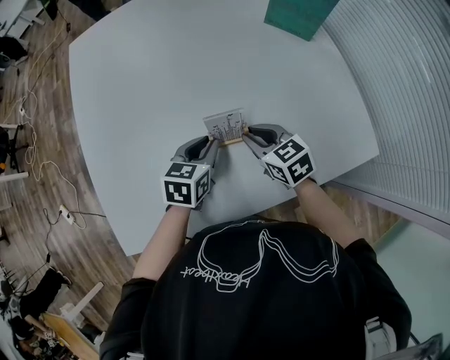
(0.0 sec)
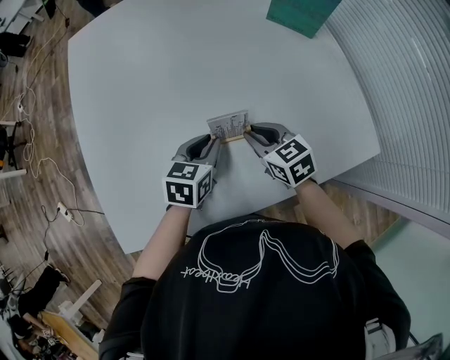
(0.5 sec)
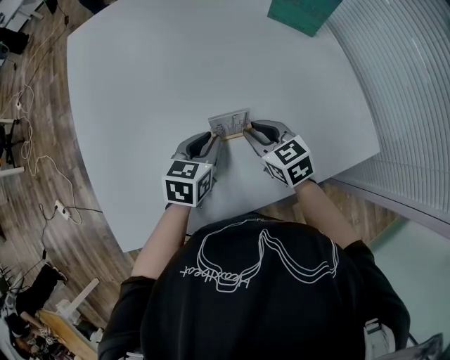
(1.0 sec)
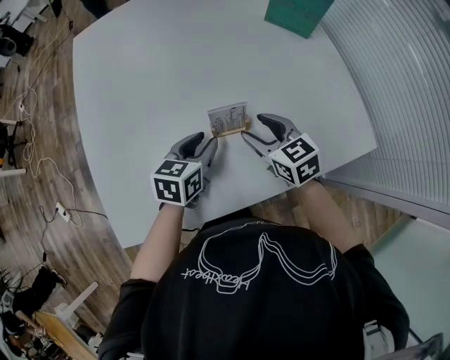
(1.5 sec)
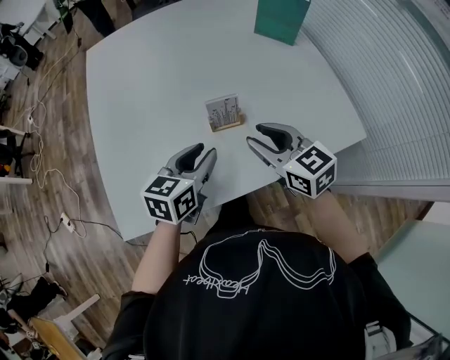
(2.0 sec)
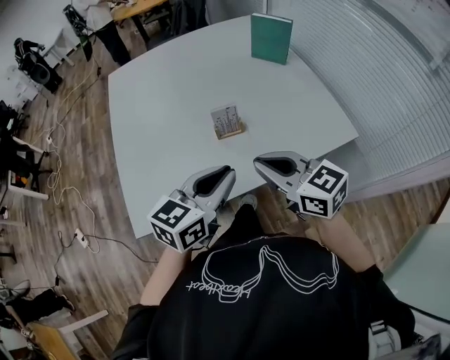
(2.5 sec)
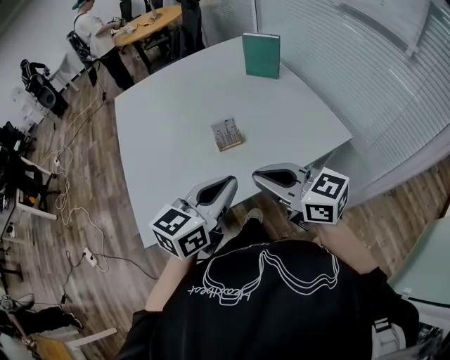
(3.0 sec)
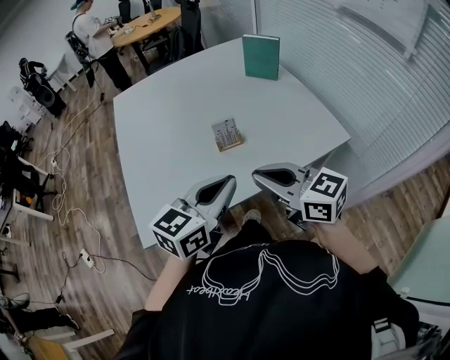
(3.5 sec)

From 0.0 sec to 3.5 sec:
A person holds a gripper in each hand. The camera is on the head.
From 0.0 sec to 2.0 sec: The grippers both shift upward and backward by roughly 15 cm. The right gripper opens and closes again.
From 2.0 sec to 3.5 sec: The two grippers go some 20 cm backward and upward. The left gripper swivels about 20 degrees, and closes its fingers, while the right gripper closes its fingers.

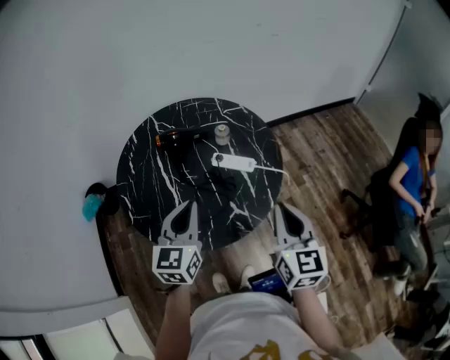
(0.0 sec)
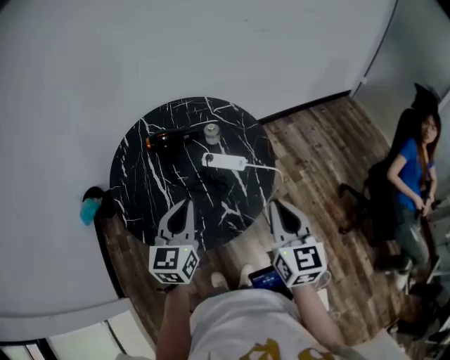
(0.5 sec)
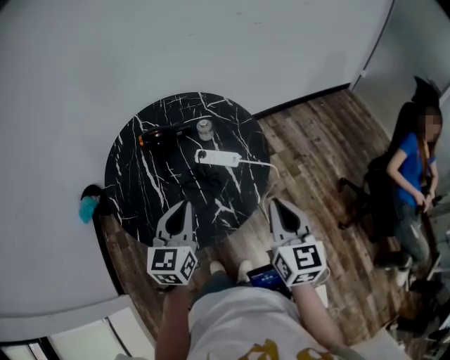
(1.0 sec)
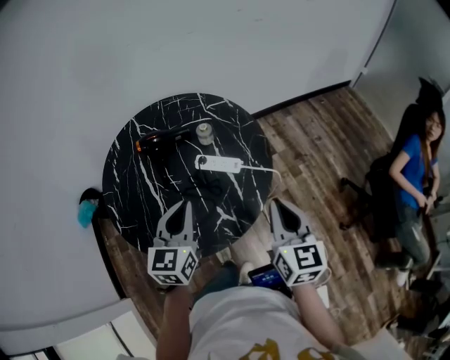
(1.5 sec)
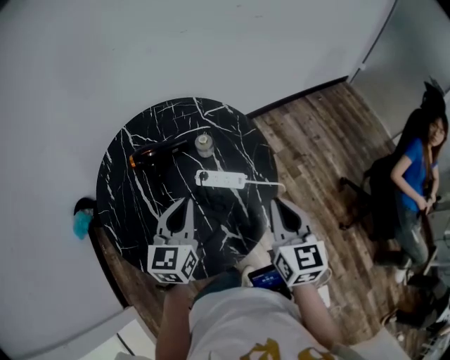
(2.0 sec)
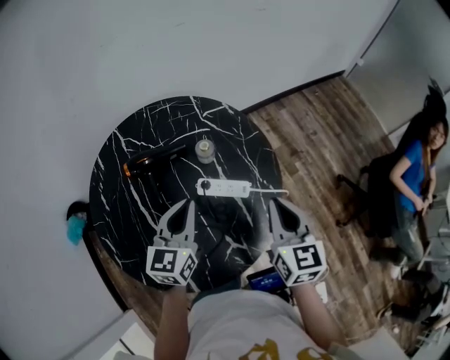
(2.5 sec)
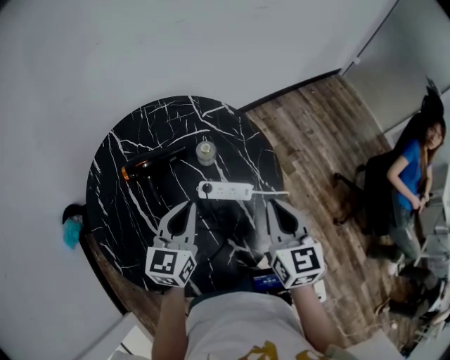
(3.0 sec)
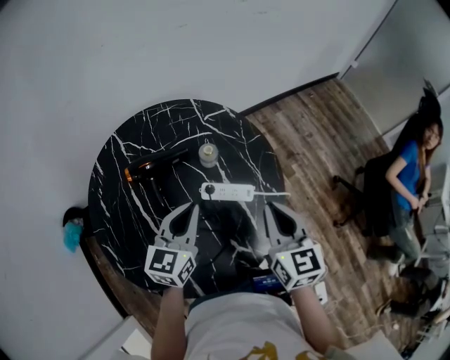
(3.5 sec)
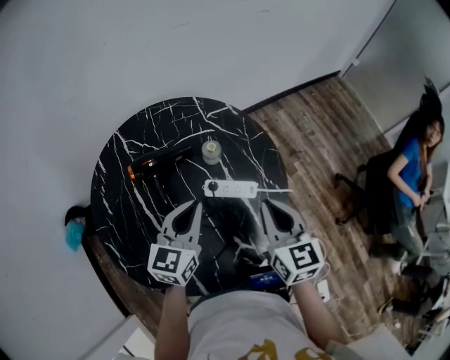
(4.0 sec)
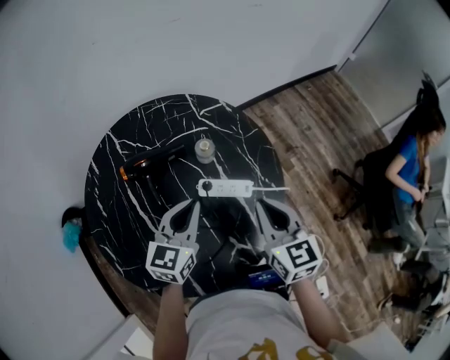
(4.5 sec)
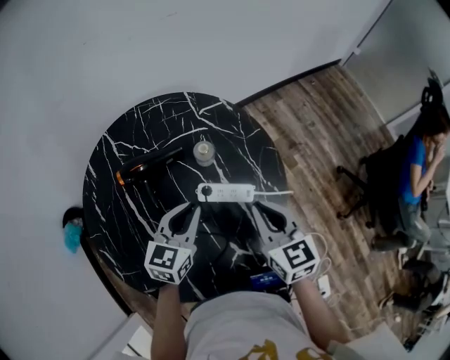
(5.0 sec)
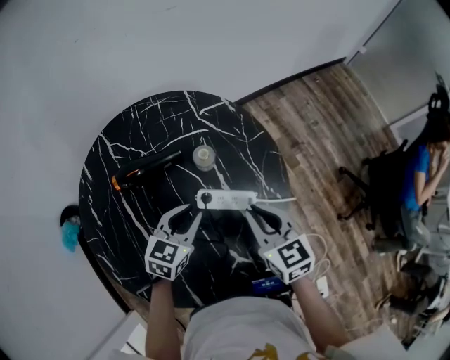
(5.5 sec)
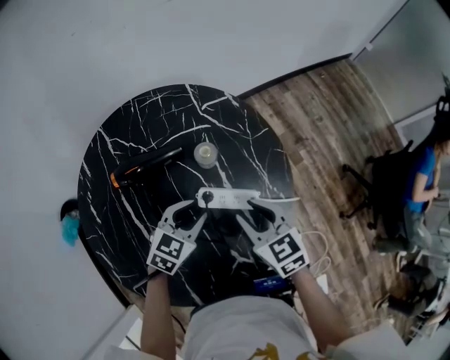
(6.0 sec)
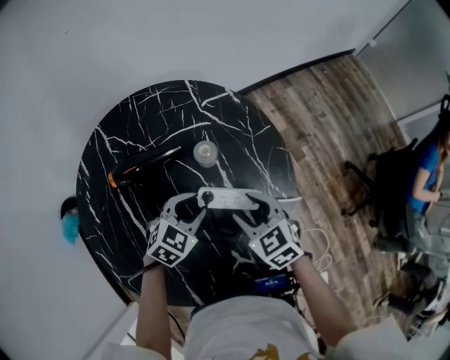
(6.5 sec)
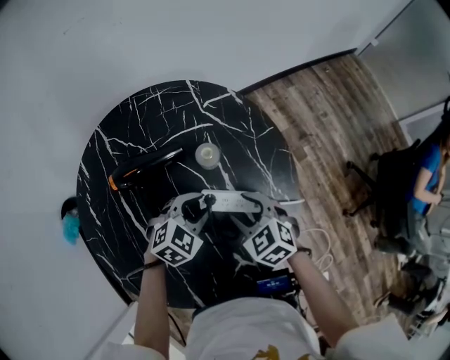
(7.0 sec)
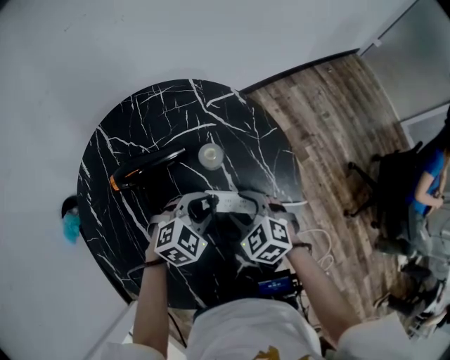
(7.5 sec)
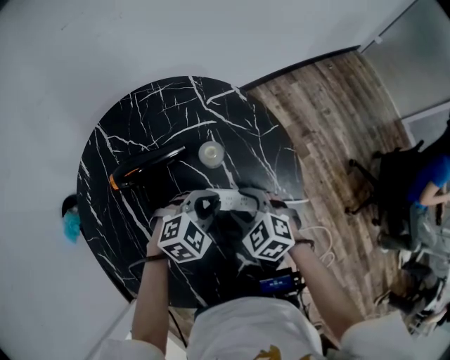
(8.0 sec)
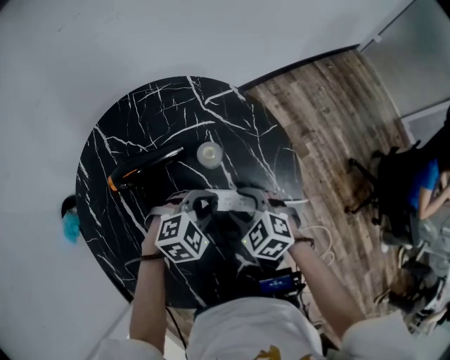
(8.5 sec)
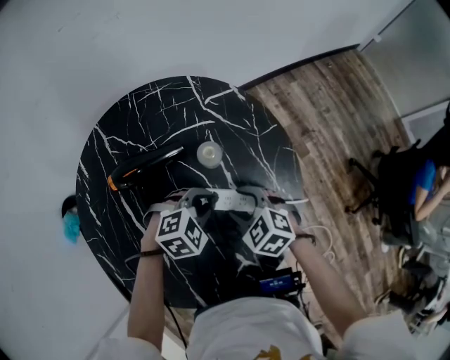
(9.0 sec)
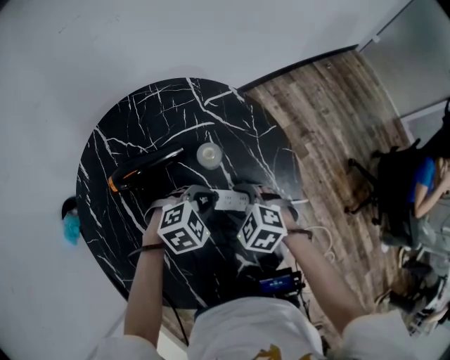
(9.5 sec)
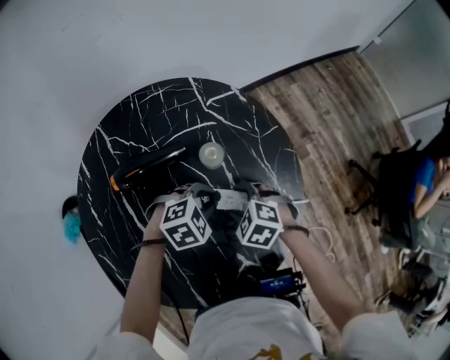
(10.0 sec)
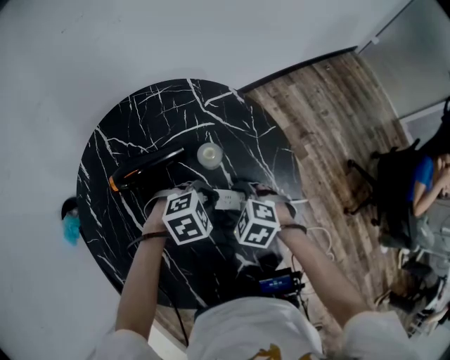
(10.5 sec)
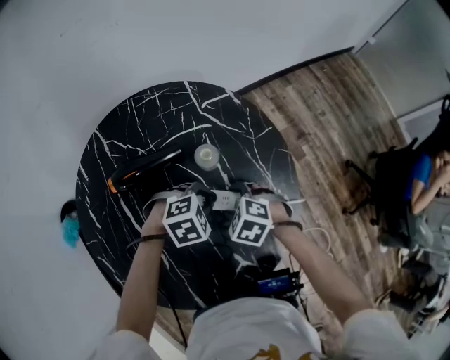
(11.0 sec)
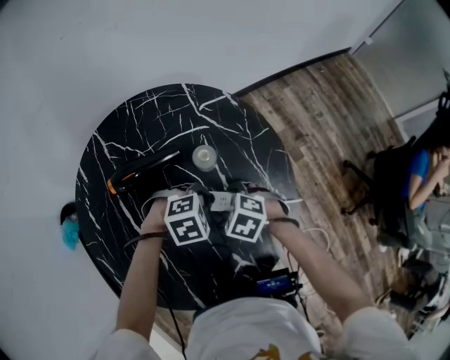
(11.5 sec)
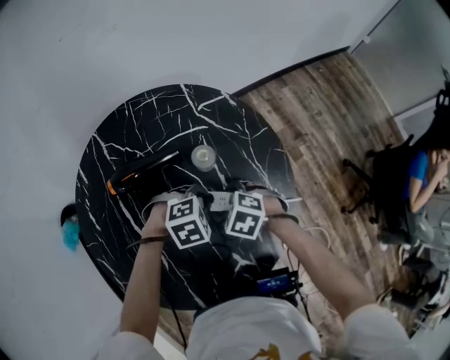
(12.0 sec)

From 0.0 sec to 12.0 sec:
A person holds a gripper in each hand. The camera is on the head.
From 0.0 sec to 2.0 sec: The two grippers go roughly 15 cm forward.
From 2.0 sec to 4.0 sec: The right gripper moves to the left, roughly 10 cm. Meanwhile the left gripper shifts by roughly 5 cm.
From 4.0 sec to 6.0 sec: The grippers both shift downward by approximately 15 cm. The right gripper swivels roughly 30 degrees, and opens up. Meanwhile the left gripper swivels approximately 30 degrees, and opens its fingers.
From 6.0 sec to 8.0 sec: The right gripper goes approximately 10 cm downward, and rotates approximately 30 degrees. The left gripper rotates approximately 30 degrees.
From 8.0 sec to 10.0 sec: There are only small adjustments of the grippers.
From 10.0 sec to 12.0 sec: There are only small adjustments of the grippers.

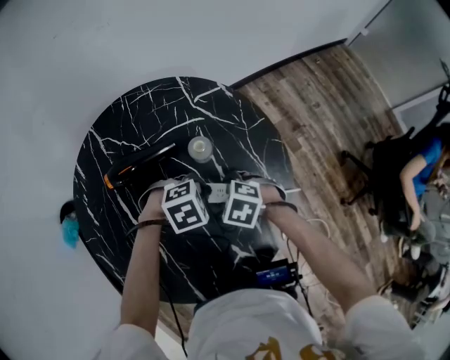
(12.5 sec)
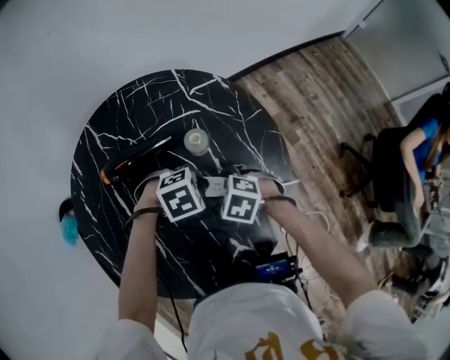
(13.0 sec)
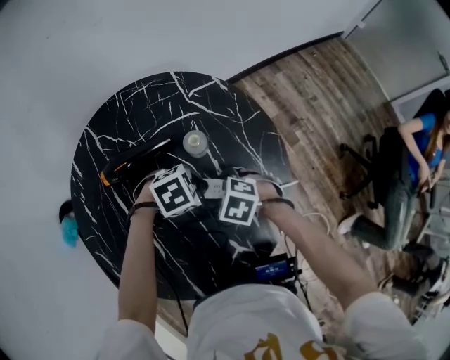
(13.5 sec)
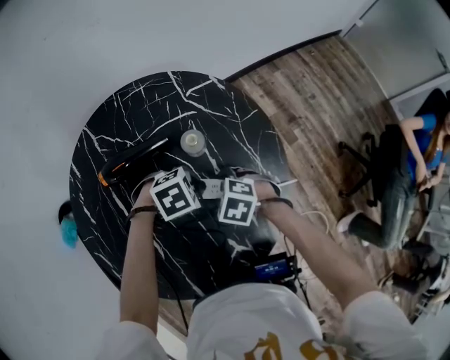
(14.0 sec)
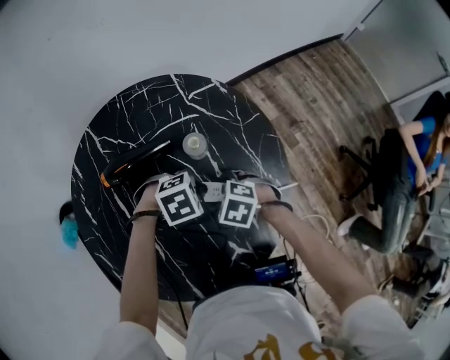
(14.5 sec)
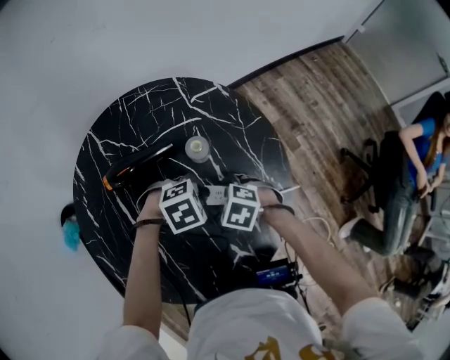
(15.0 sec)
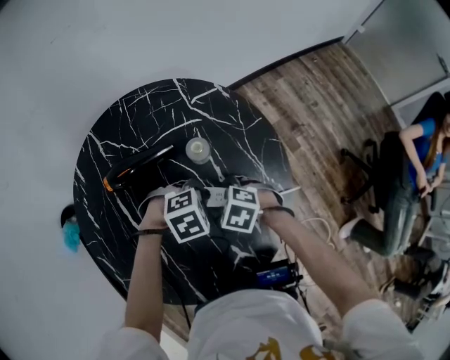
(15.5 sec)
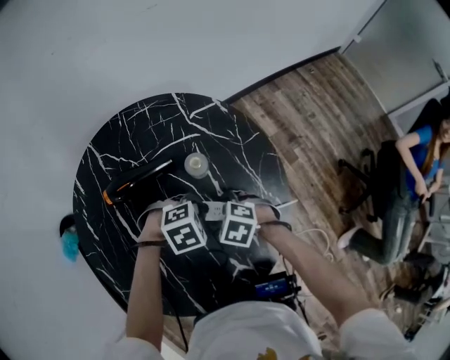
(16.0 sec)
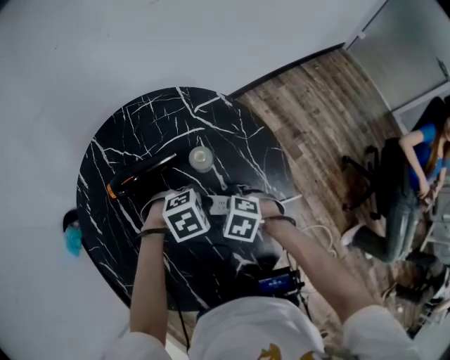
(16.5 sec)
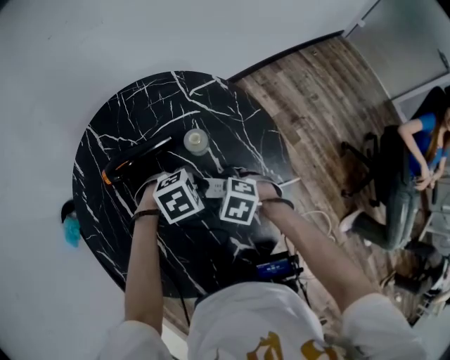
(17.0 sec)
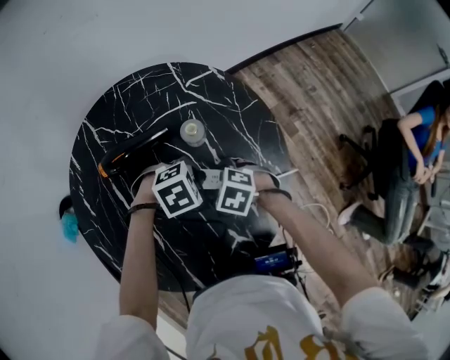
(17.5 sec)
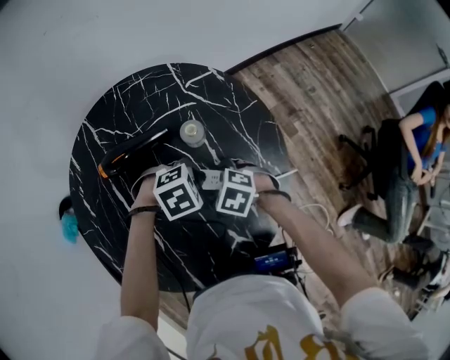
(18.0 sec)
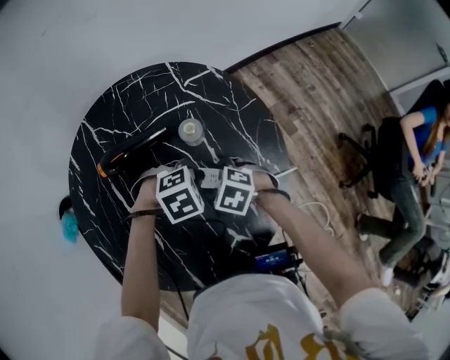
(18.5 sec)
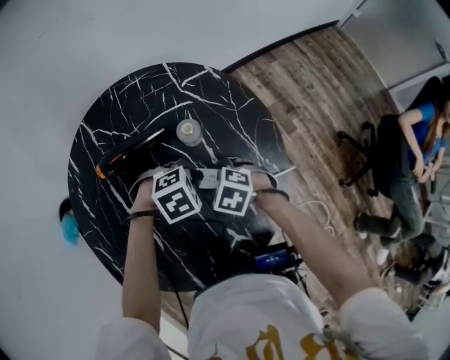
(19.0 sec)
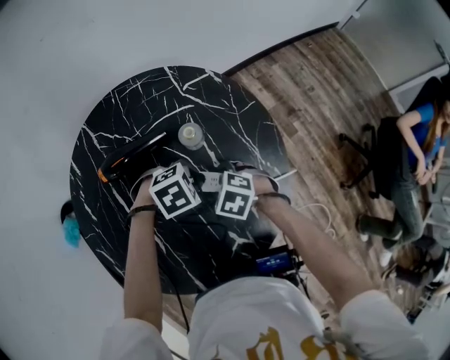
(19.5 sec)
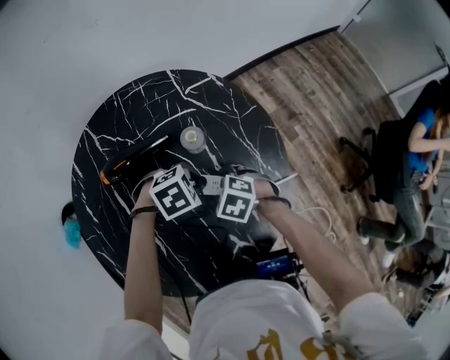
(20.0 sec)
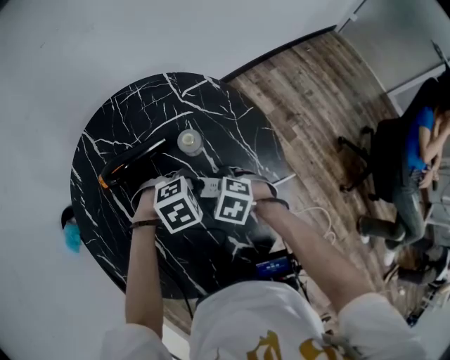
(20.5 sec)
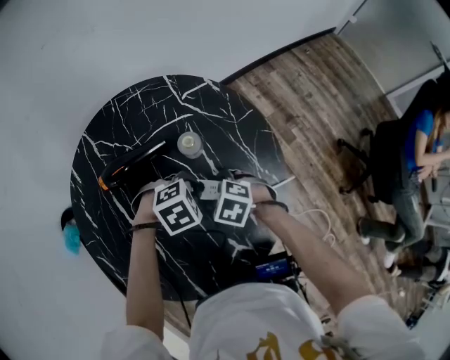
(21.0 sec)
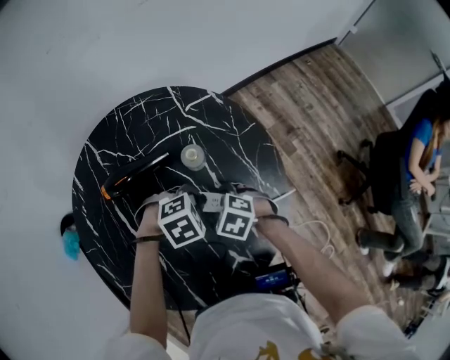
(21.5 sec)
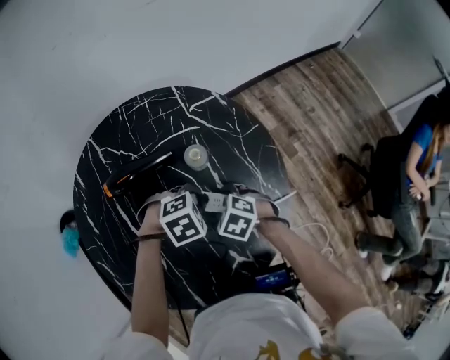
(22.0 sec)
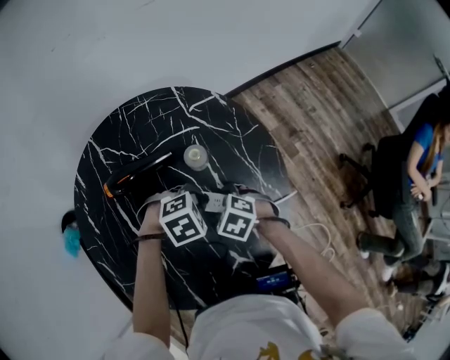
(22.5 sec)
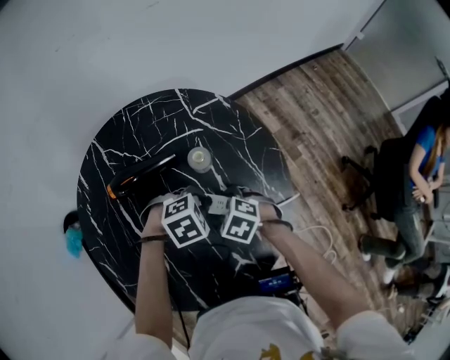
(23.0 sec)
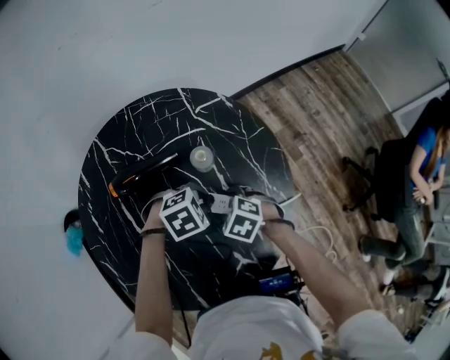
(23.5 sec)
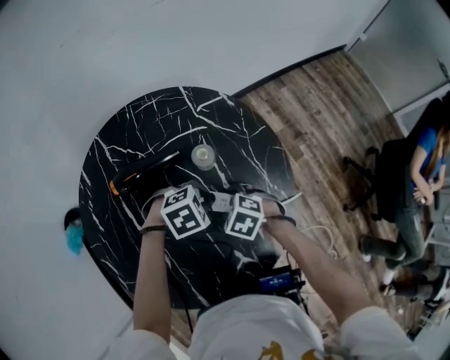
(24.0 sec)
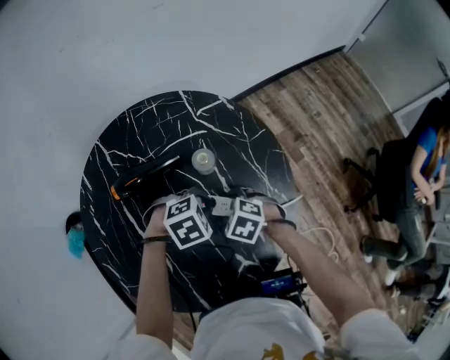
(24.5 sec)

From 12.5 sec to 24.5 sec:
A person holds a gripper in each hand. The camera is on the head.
From 12.5 sec to 24.5 sec: The grippers stay close to where they were, moving slightly.
